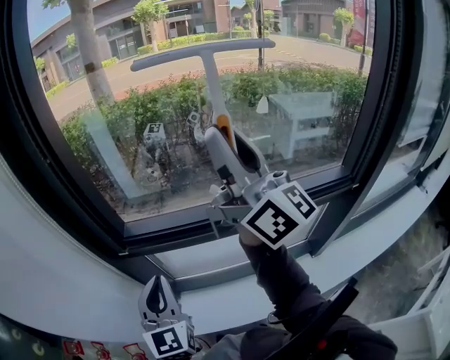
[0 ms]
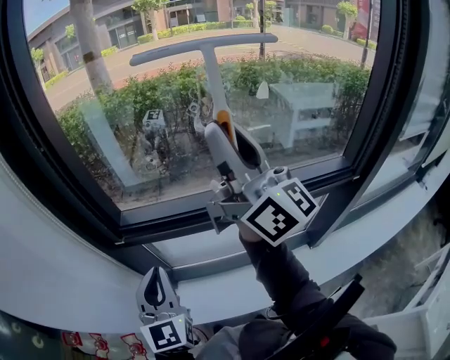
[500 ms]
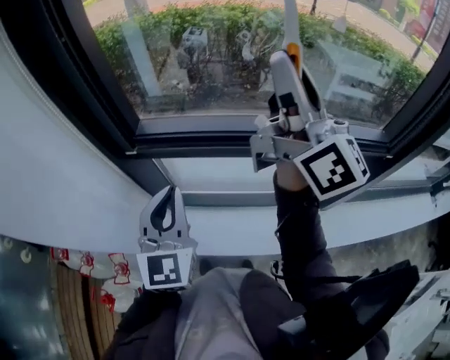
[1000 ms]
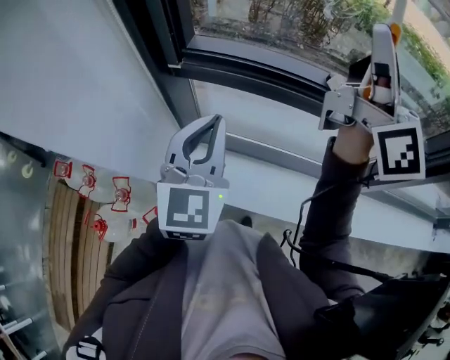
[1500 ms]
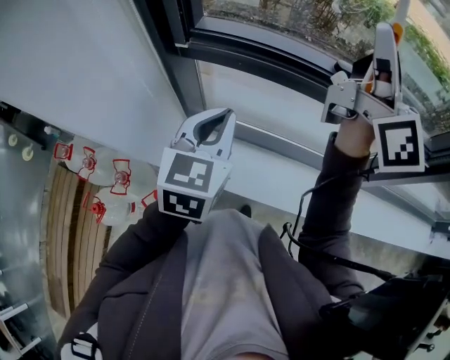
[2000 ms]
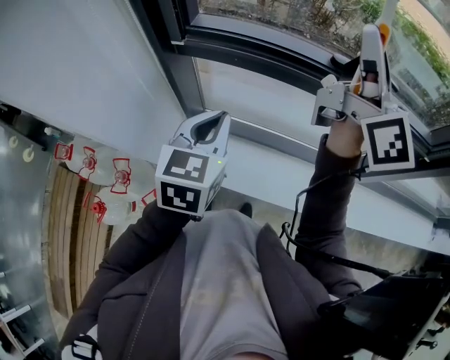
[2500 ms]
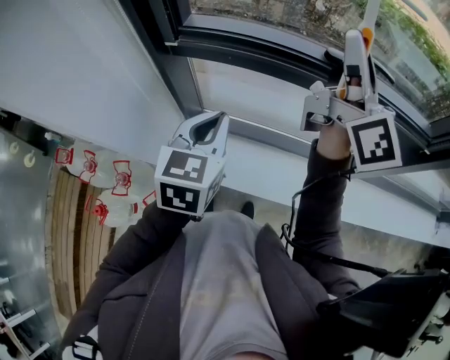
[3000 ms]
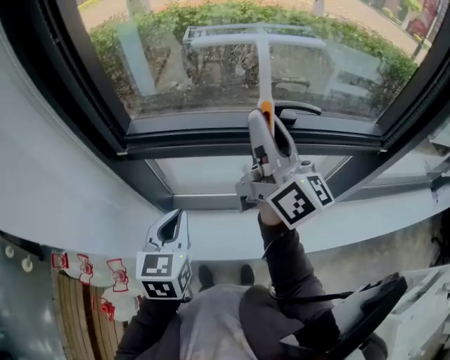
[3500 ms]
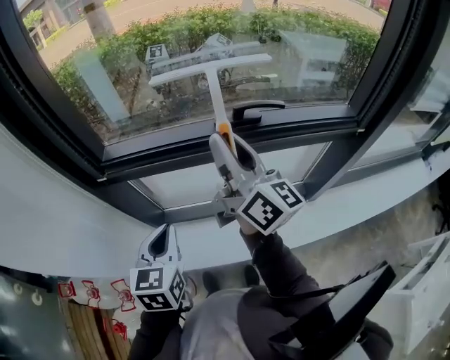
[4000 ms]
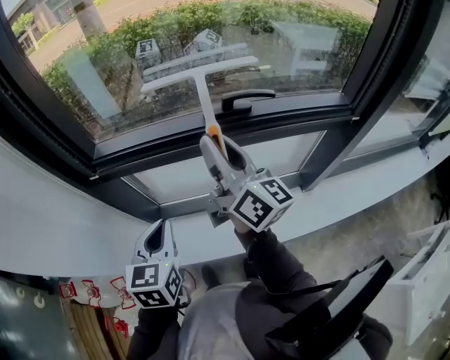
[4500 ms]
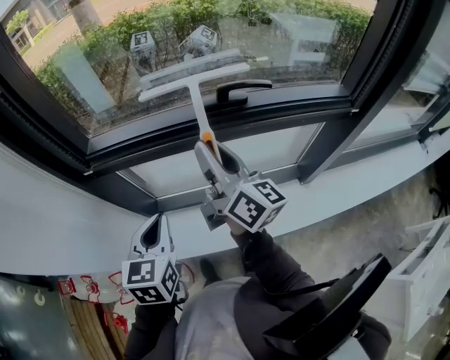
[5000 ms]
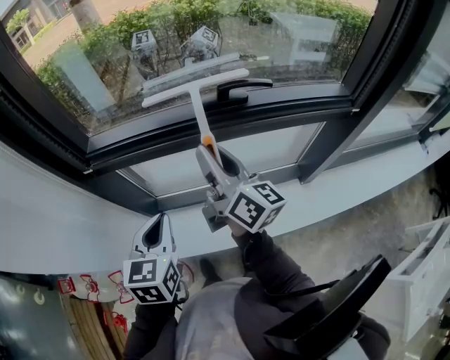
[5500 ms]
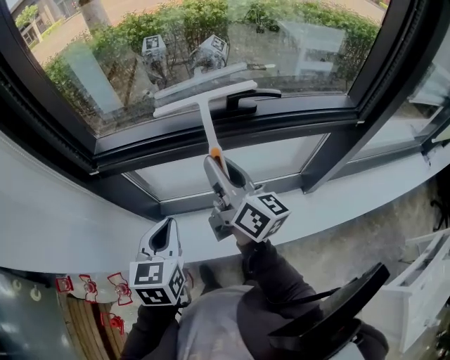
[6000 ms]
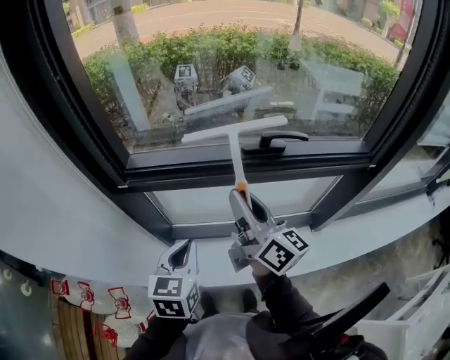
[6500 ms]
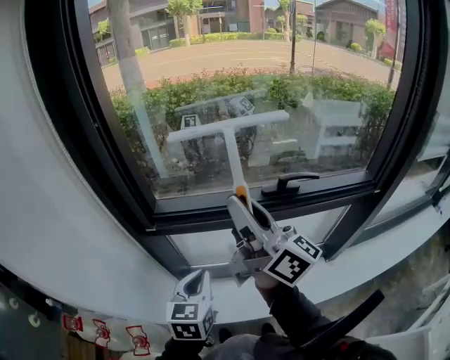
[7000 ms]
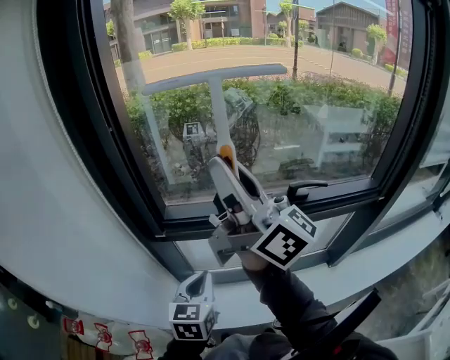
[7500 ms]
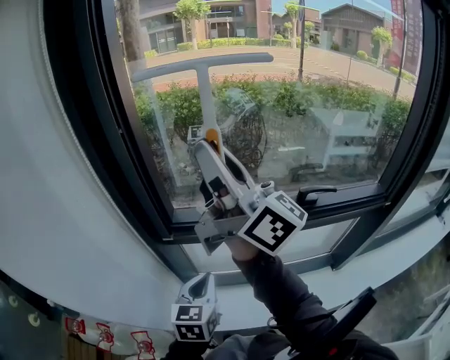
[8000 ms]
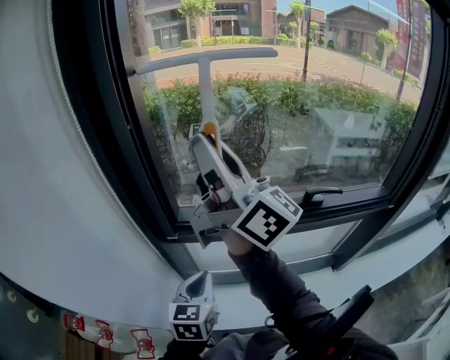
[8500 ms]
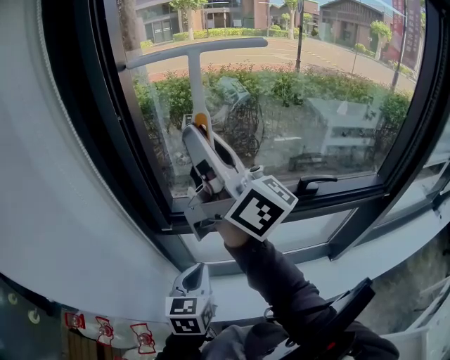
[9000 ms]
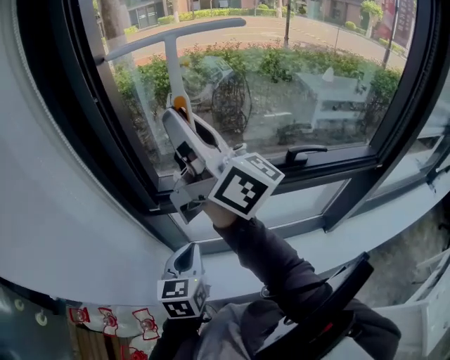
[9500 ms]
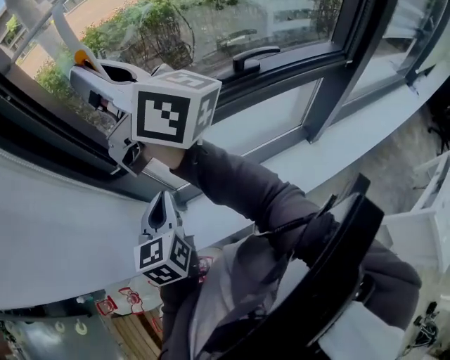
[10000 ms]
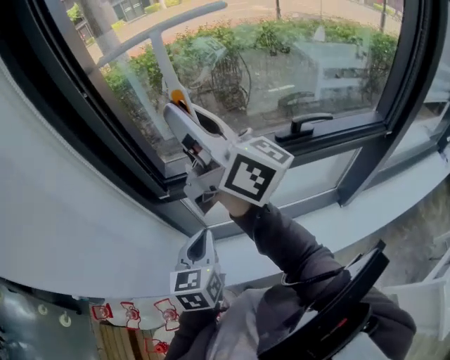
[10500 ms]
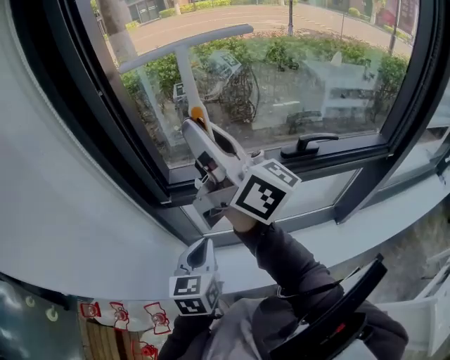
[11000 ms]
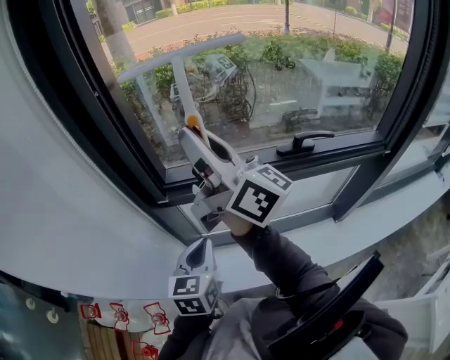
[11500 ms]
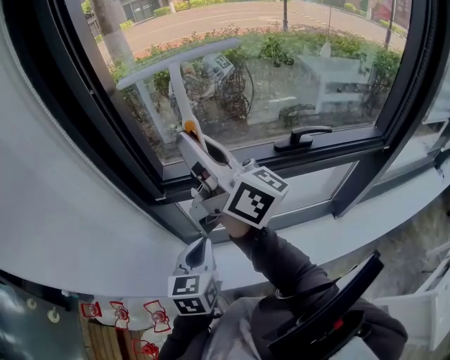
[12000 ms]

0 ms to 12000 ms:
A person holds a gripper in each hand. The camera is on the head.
0 ms to 2000 ms: The two grippers go some 10 cm downward.
2000 ms to 4000 ms: The right gripper heads downward, covering about 10 cm.
4000 ms to 6000 ms: The right gripper travels downward by approximately 10 cm.
6000 ms to 8000 ms: The right gripper moves upward and to the left, about 35 cm, and rotates about 30 degrees. The left gripper moves to the left and forward, roughly 10 cm.
8000 ms to 10000 ms: The grippers make only small movements.
10000 ms to 12000 ms: The right gripper heads downward, covering some 5 cm.

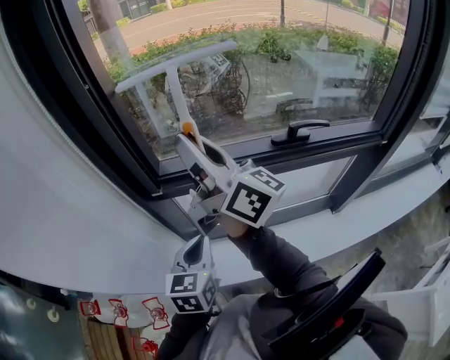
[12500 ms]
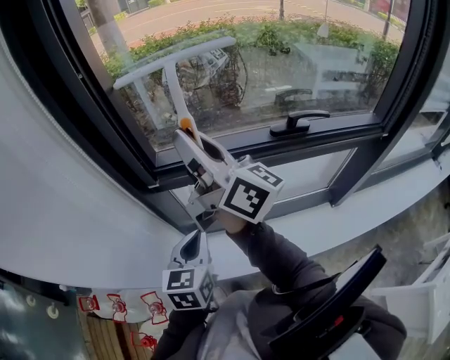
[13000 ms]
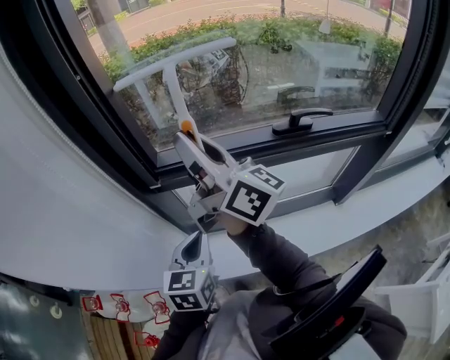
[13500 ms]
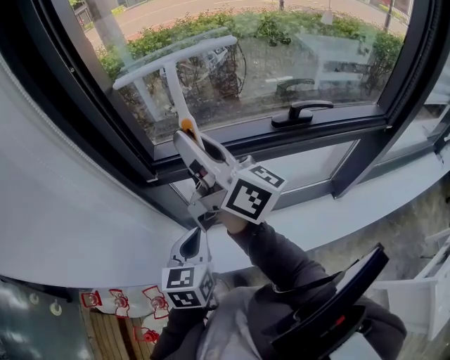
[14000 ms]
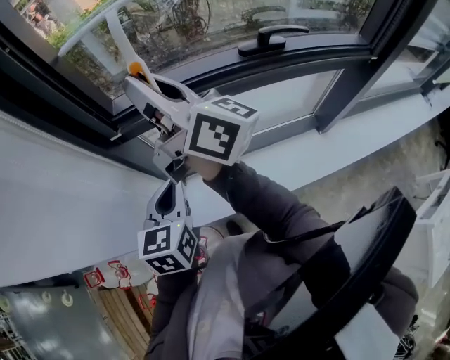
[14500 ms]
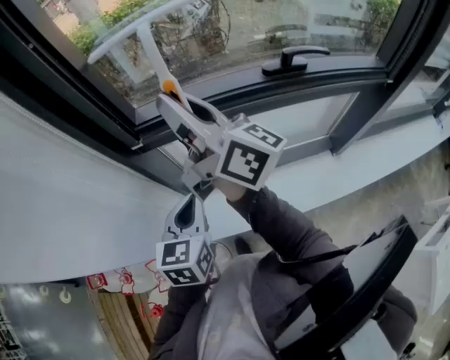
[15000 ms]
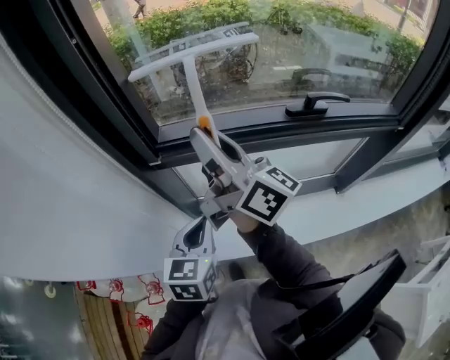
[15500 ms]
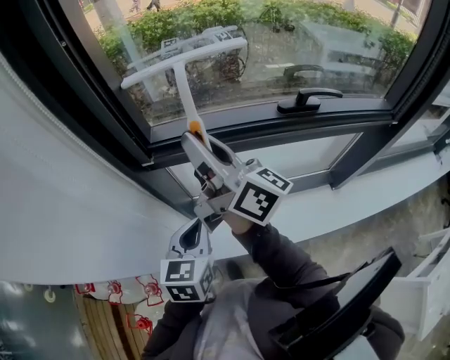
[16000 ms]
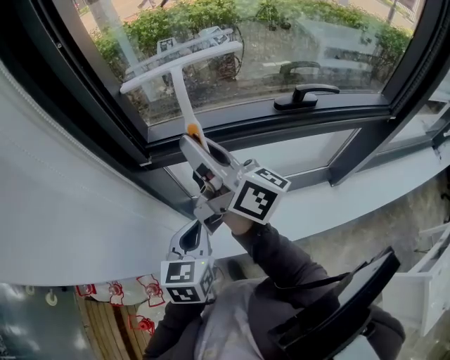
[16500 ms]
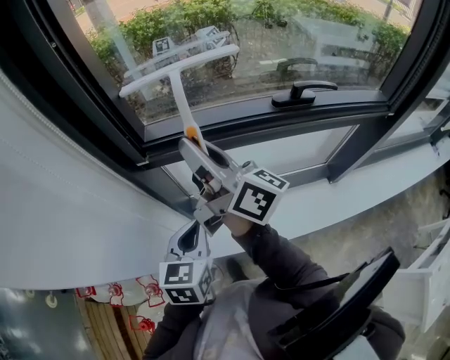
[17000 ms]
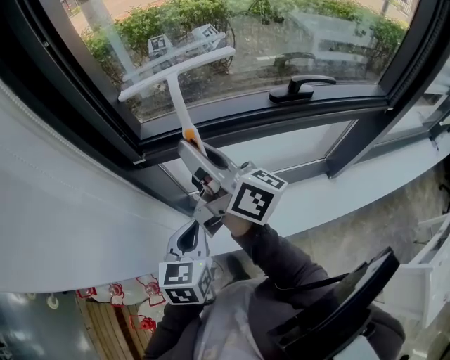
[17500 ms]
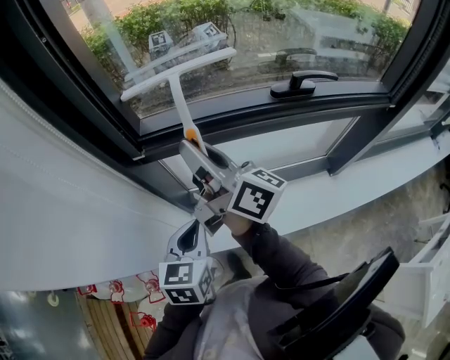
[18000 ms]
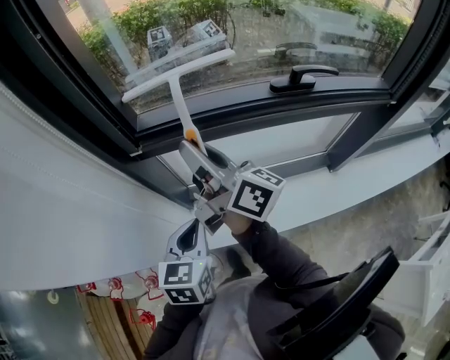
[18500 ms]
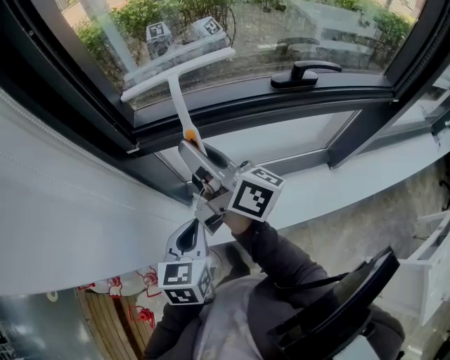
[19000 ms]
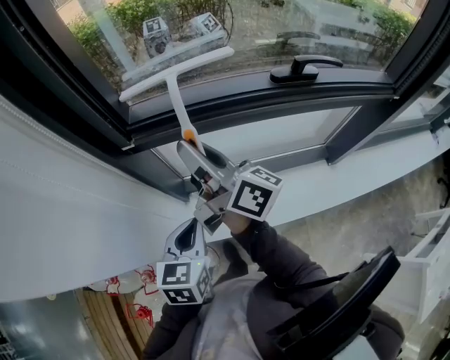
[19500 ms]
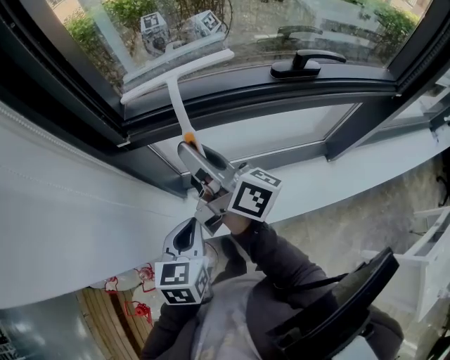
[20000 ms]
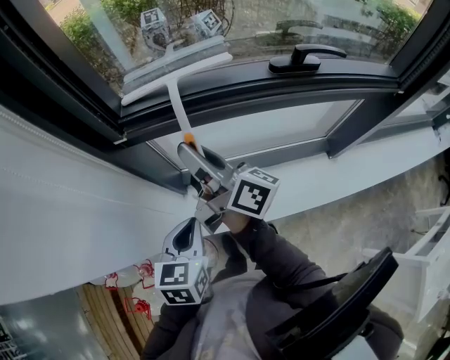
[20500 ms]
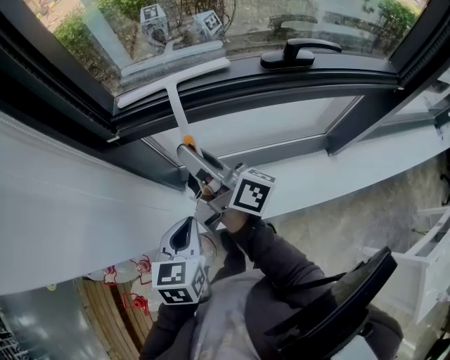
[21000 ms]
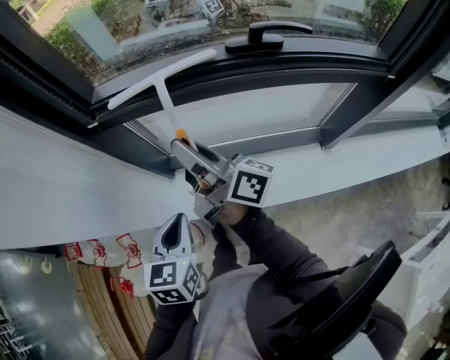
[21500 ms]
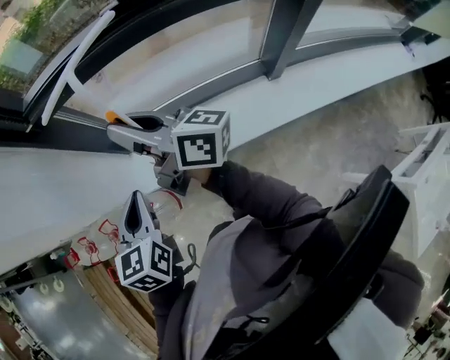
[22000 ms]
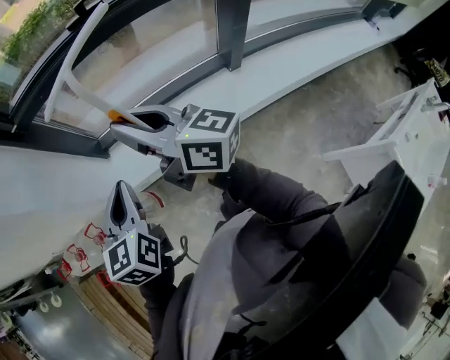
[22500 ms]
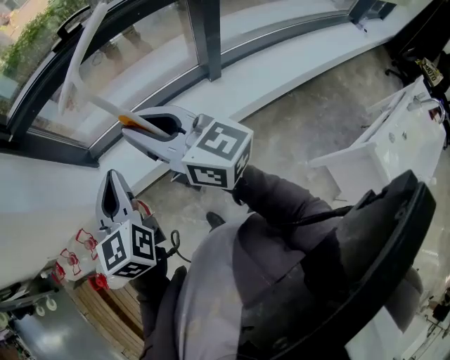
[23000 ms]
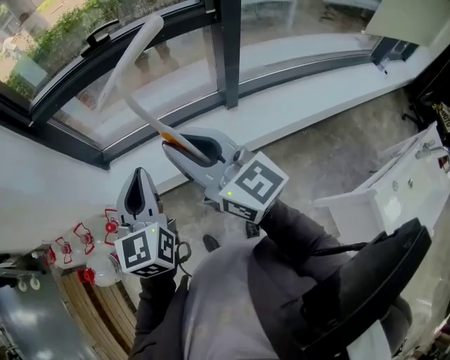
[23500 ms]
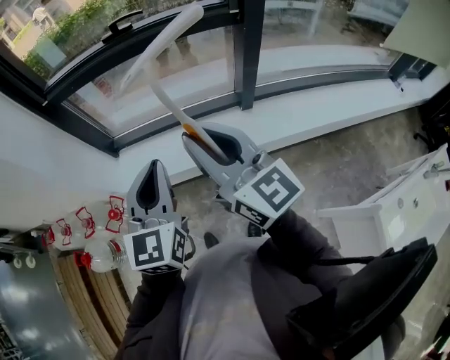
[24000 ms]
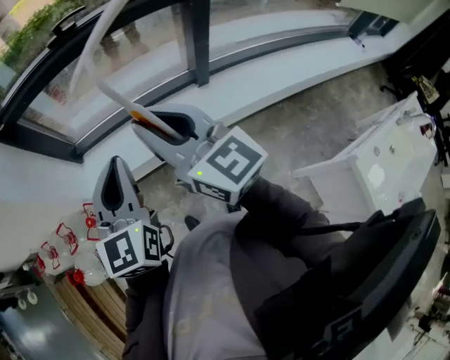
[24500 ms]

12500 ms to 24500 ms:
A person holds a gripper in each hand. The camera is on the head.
12500 ms to 14500 ms: The right gripper moves roughly 5 cm.
14500 ms to 16500 ms: The grippers move only a little.
16500 ms to 18500 ms: The right gripper heads downward, covering approximately 5 cm.
18500 ms to 20500 ms: The right gripper moves downward, approximately 5 cm.
20500 ms to 22500 ms: The two grippers go some 35 cm backward and to the right. The right gripper turns by some 20 degrees.
22500 ms to 24500 ms: The left gripper moves to the right, backward and upward, approximately 20 cm. The right gripper travels backward and to the right by about 20 cm, and swivels about 30 degrees.

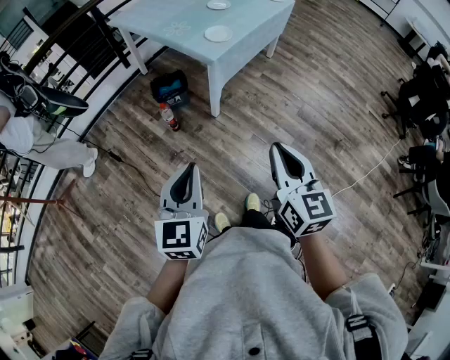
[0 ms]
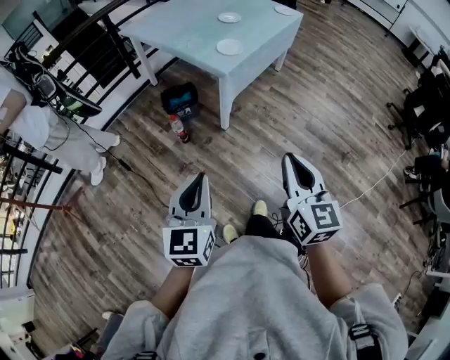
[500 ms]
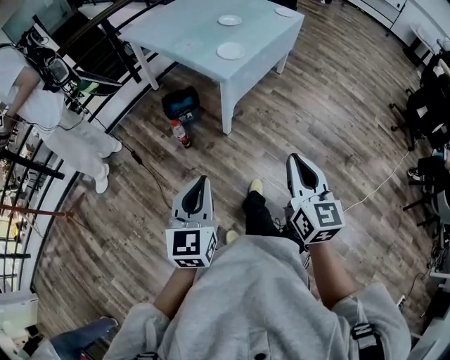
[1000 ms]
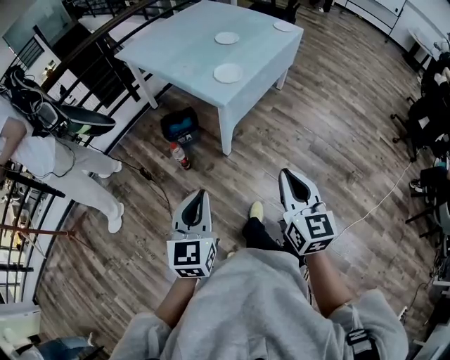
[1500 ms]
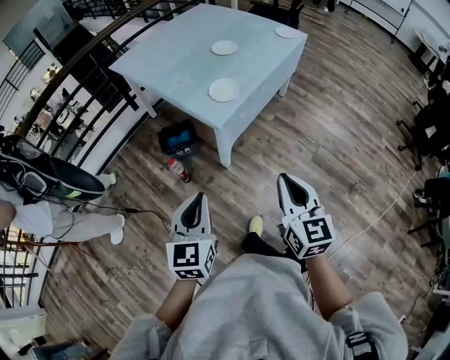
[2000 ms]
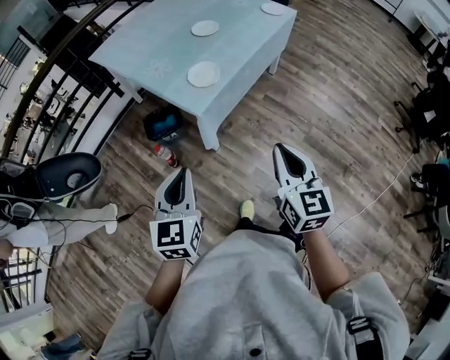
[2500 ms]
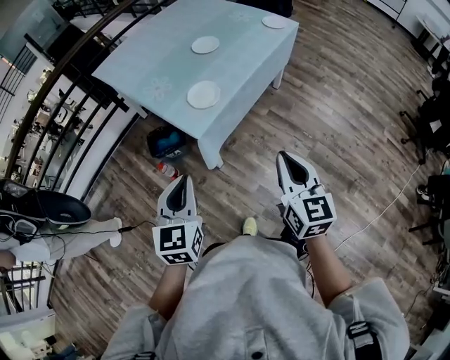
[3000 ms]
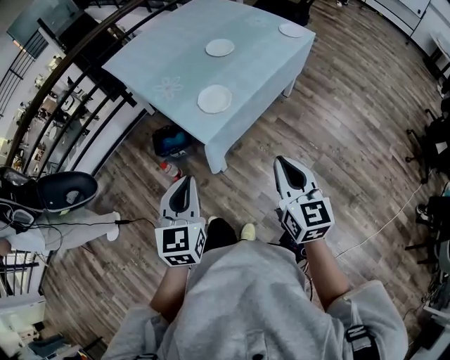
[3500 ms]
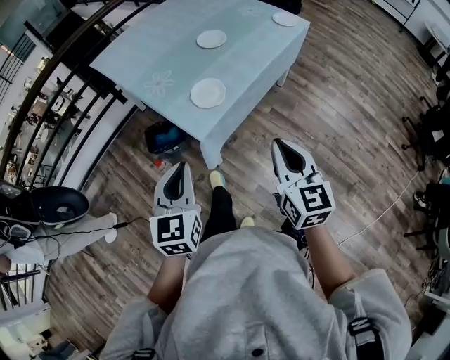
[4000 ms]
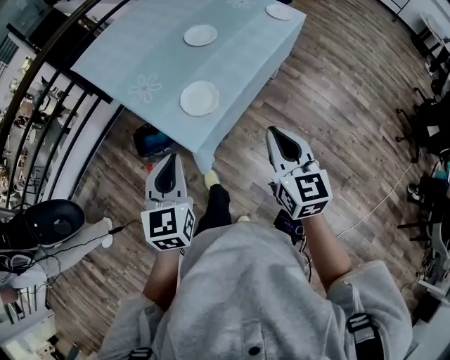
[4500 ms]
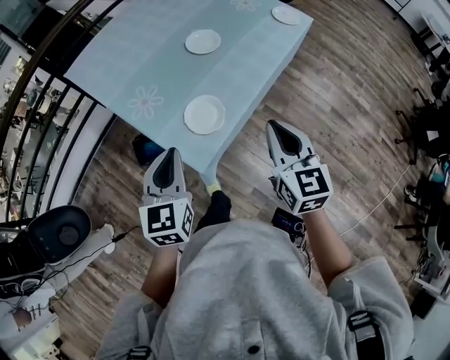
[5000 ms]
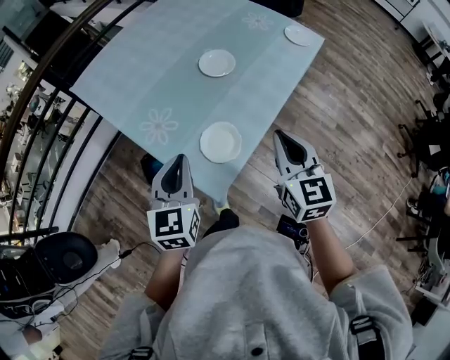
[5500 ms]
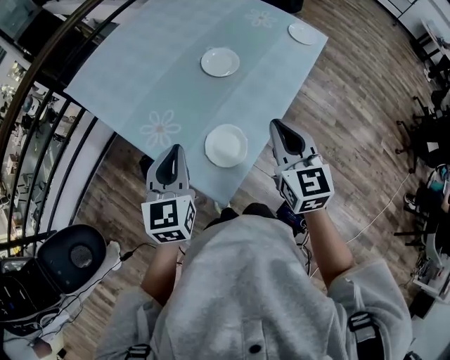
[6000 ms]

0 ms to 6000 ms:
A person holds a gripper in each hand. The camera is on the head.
0 ms to 2000 ms: The two grippers go some 20 cm forward.
2000 ms to 4000 ms: The two grippers go about 20 cm forward.
4000 ms to 6000 ms: Both grippers travel together forward, approximately 30 cm.
